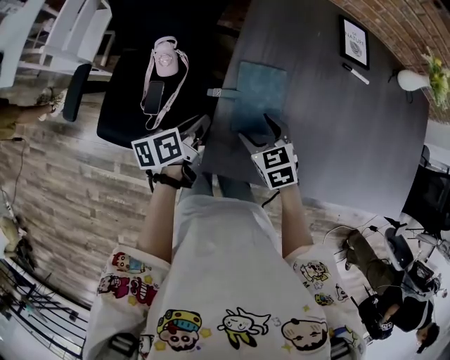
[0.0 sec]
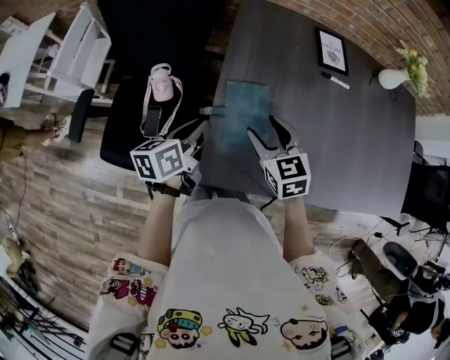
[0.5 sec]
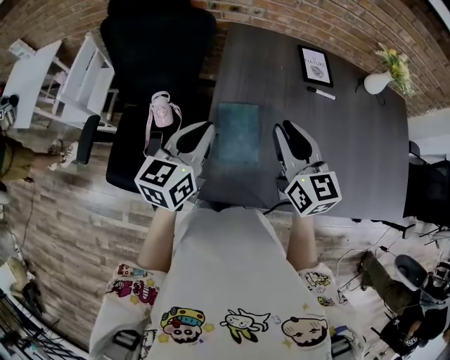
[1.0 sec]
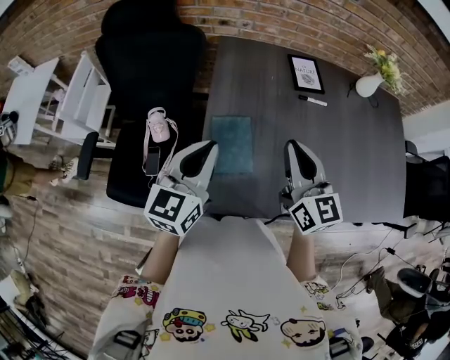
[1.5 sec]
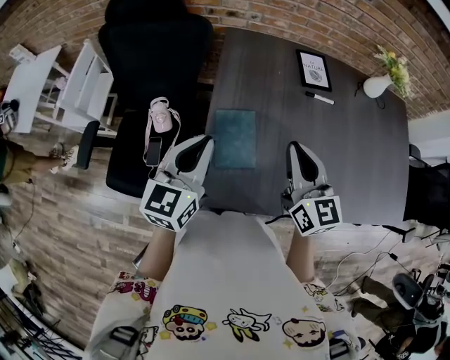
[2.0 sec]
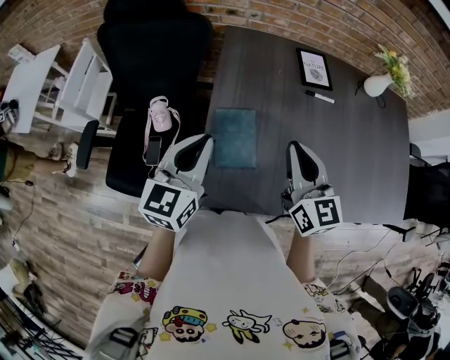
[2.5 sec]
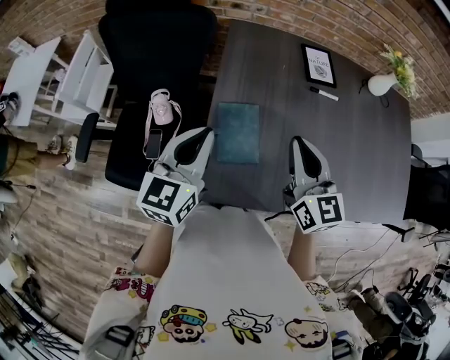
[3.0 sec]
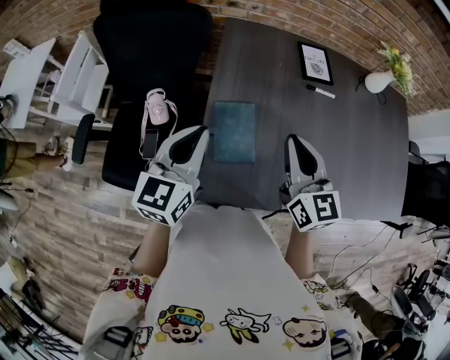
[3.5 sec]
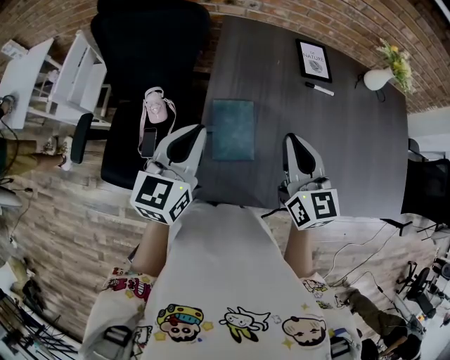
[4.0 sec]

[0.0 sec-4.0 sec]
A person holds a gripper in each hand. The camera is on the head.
0.0 sec to 2.0 sec: The left gripper is displaced upward by some 20 cm, and twists some 50 degrees clockwise, seen from behind. Meanwhile the right gripper is displaced upward and to the right by about 30 cm, tilts its fingers roughly 40 degrees upward, and closes its fingers.
2.0 sec to 4.0 sec: The grippers stay close to where they were, moving slightly.

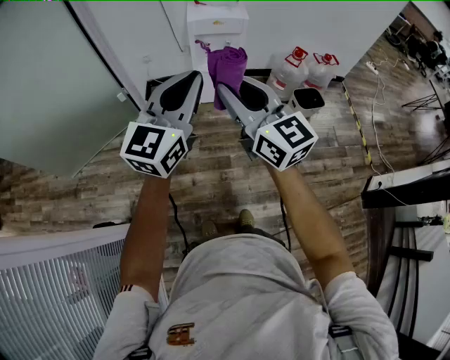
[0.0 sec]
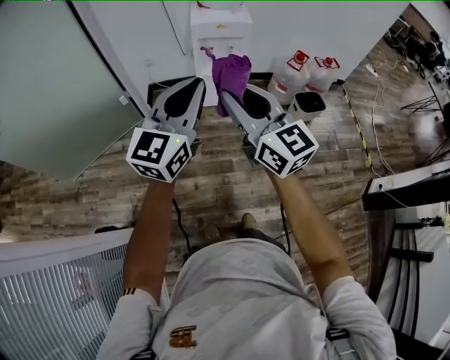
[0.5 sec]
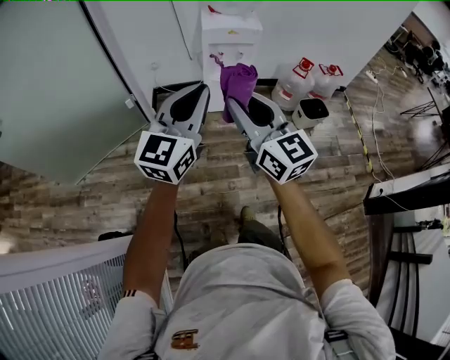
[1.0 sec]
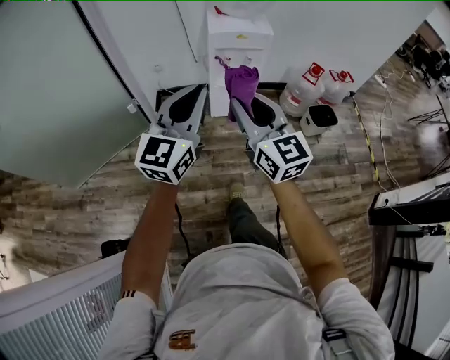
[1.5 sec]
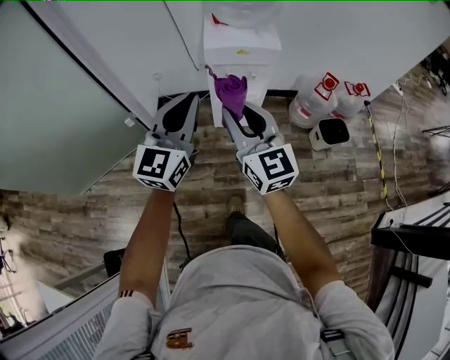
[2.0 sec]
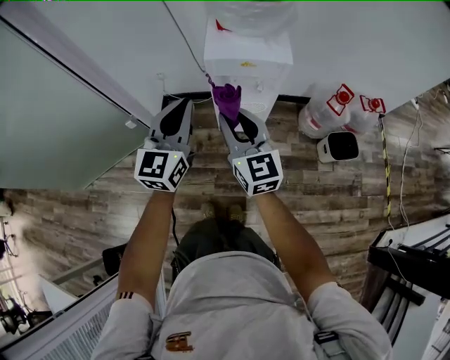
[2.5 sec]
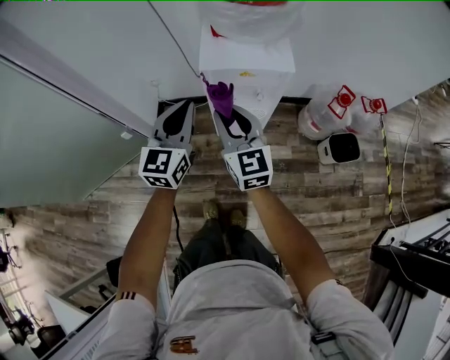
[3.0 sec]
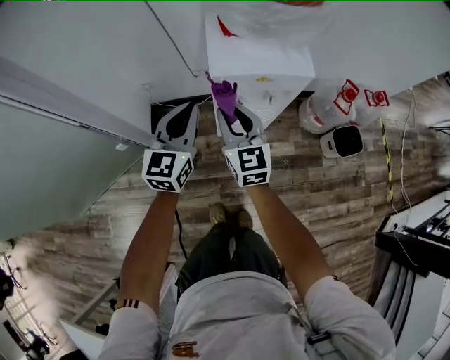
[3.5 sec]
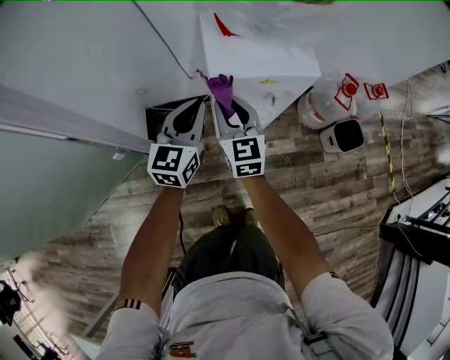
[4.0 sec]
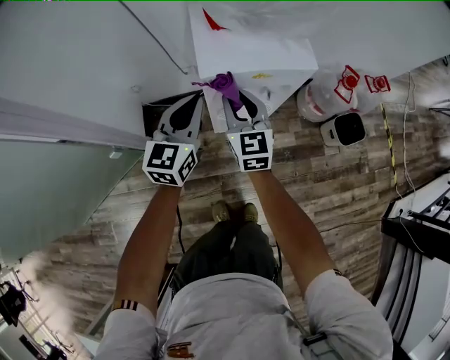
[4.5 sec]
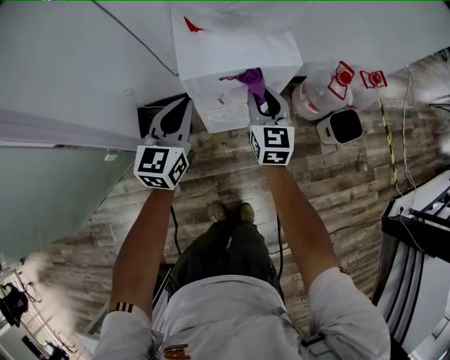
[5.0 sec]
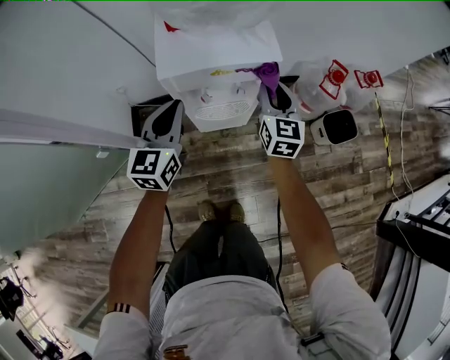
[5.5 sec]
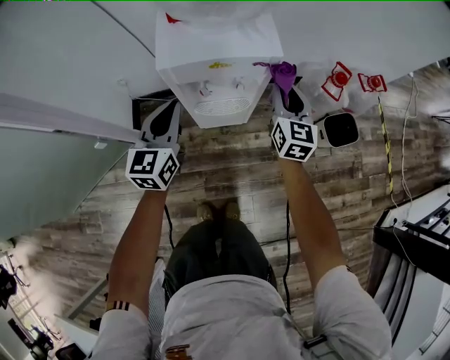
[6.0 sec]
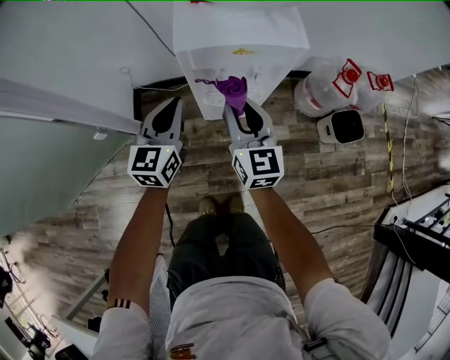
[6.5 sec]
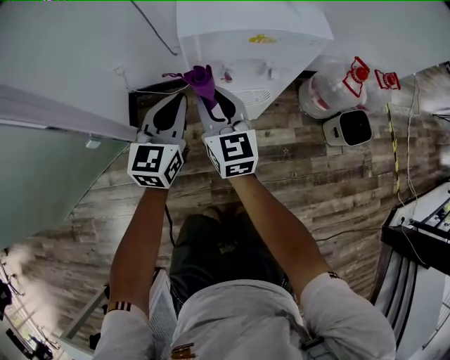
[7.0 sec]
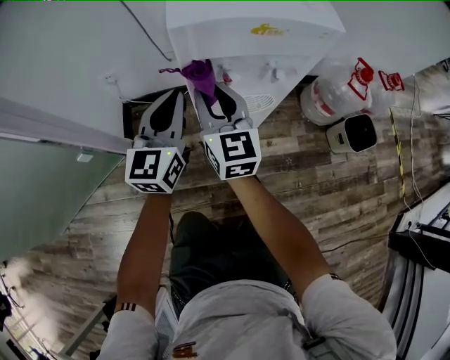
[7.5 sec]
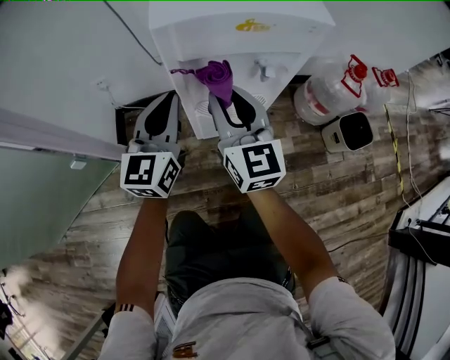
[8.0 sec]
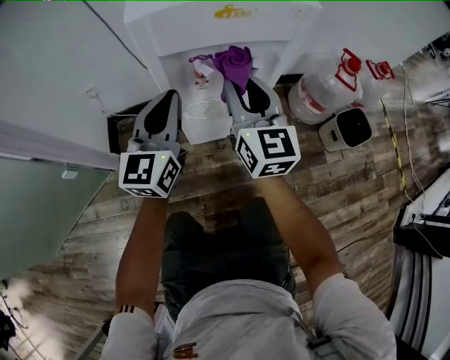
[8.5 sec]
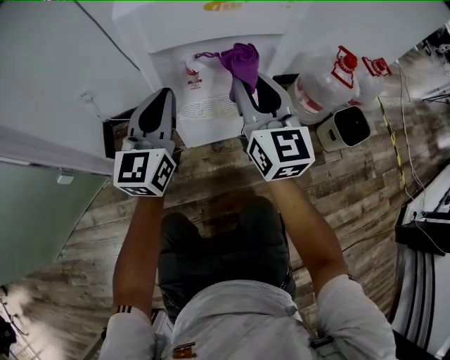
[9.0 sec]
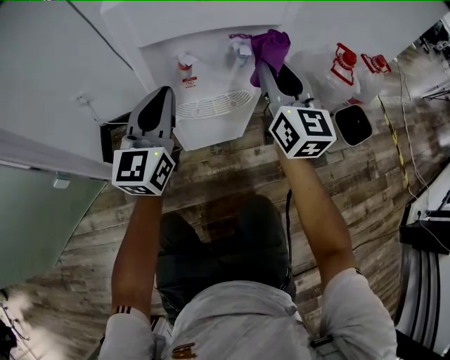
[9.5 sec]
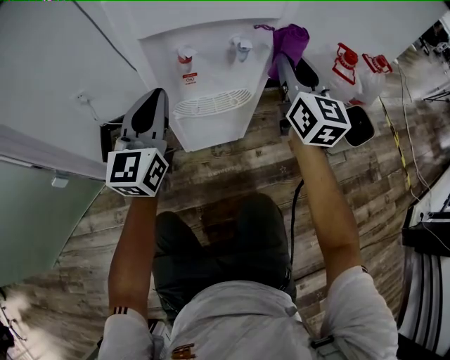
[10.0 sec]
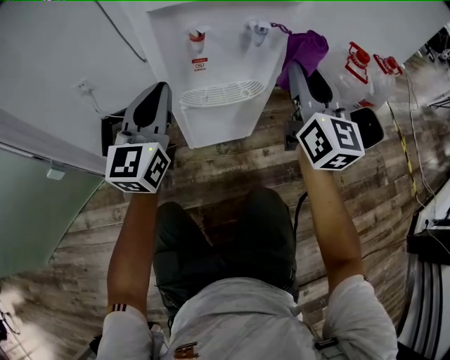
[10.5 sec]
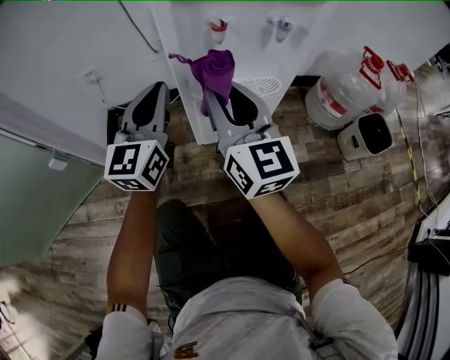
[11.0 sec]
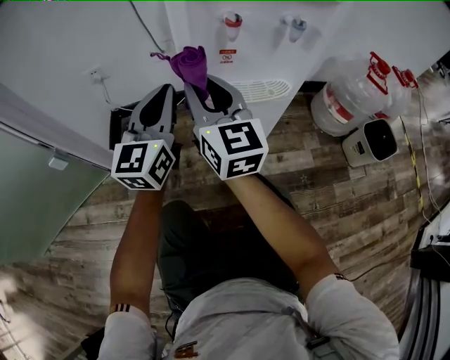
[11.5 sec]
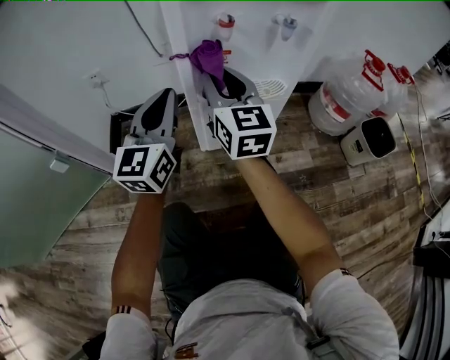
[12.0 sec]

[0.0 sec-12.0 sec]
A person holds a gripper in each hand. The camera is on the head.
0.0 sec to 2.0 sec: The two grippers go roughly 25 cm forward.
2.0 sec to 4.0 sec: Both grippers move forward and downward, about 35 cm. The right gripper changes its angle by some 20 degrees.
4.0 sec to 6.0 sec: The left gripper travels to the right by some 10 cm. The right gripper heads to the right, covering approximately 30 cm.
6.0 sec to 8.0 sec: The left gripper shifts some 10 cm downward, while the right gripper is displaced to the left by roughly 20 cm.
8.0 sec to 10.0 sec: The left gripper shifts approximately 5 cm downward, while the right gripper goes some 20 cm to the right.
10.0 sec to 12.0 sec: The right gripper shifts roughly 25 cm to the left and downward. The left gripper travels downward and to the left by roughly 10 cm.

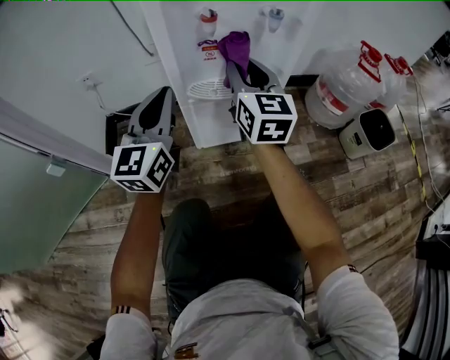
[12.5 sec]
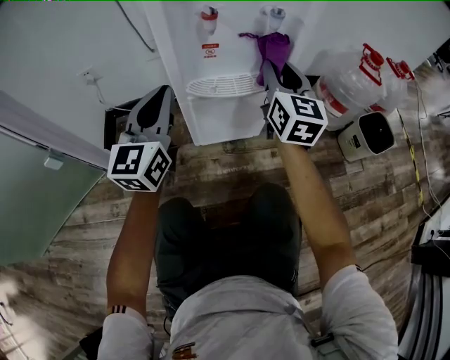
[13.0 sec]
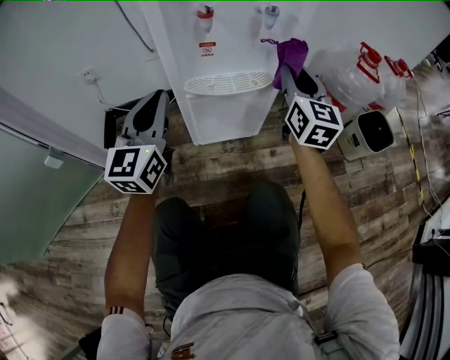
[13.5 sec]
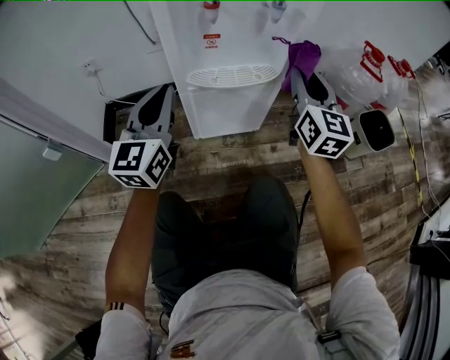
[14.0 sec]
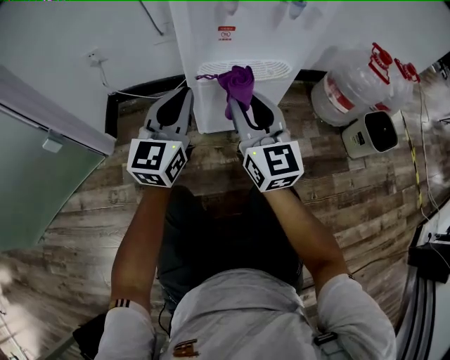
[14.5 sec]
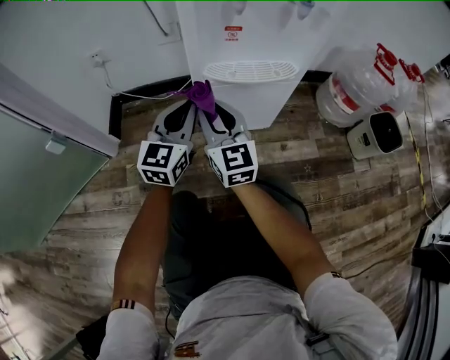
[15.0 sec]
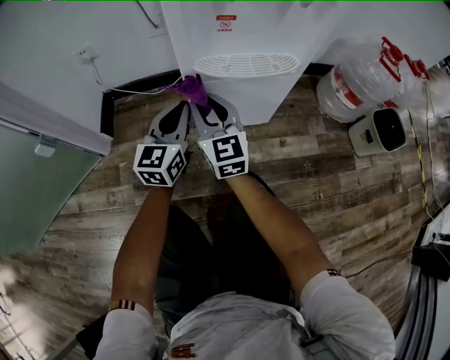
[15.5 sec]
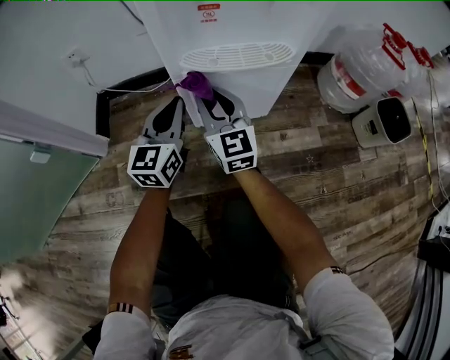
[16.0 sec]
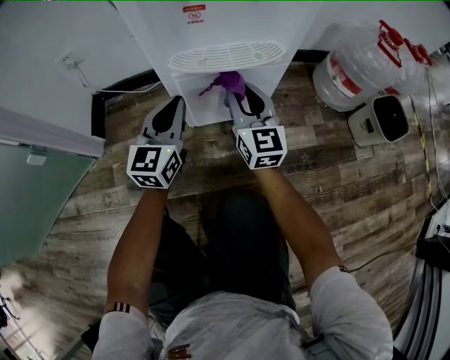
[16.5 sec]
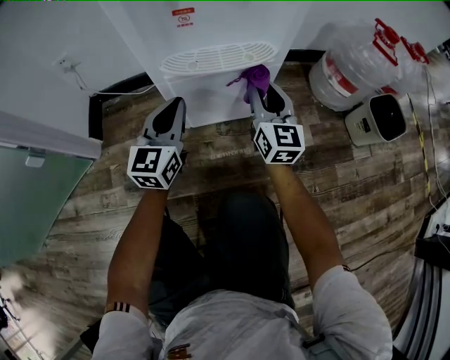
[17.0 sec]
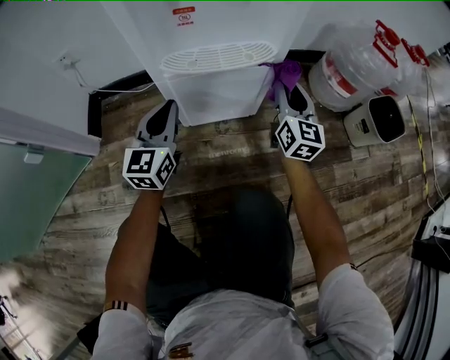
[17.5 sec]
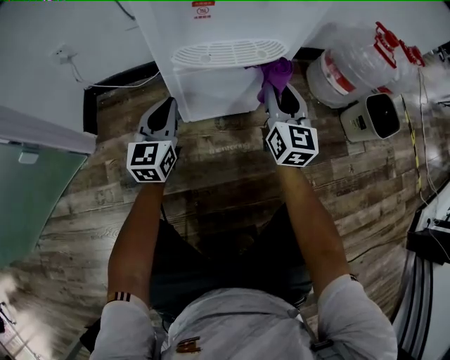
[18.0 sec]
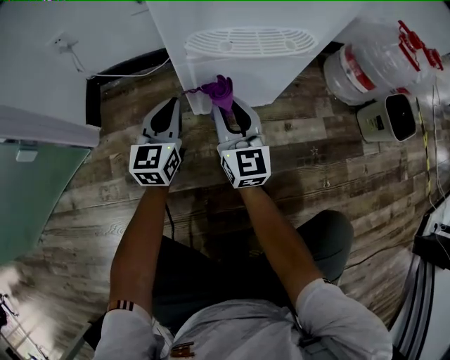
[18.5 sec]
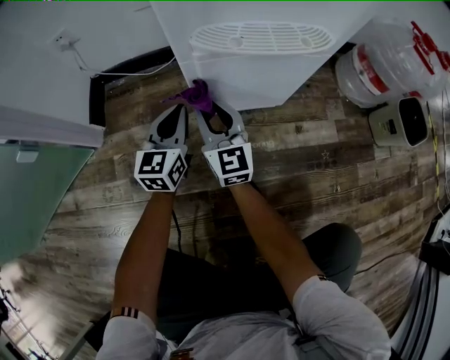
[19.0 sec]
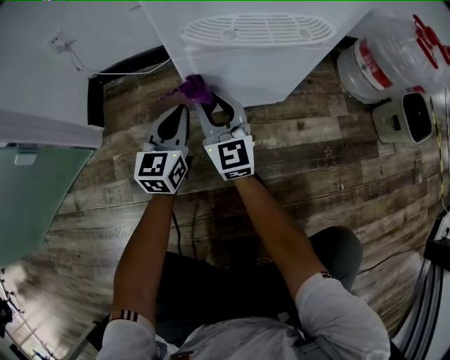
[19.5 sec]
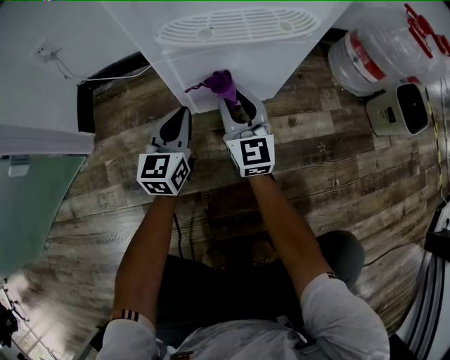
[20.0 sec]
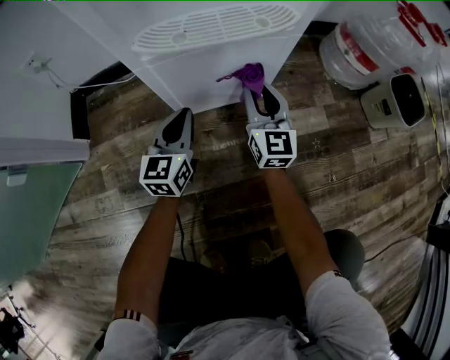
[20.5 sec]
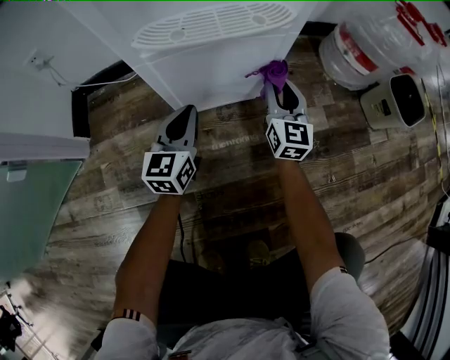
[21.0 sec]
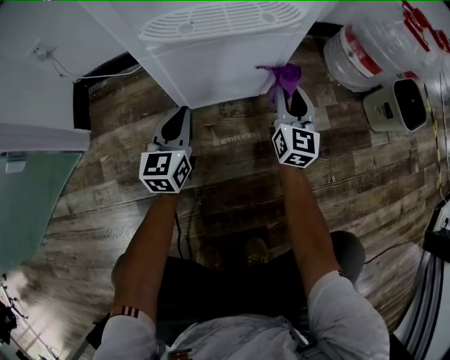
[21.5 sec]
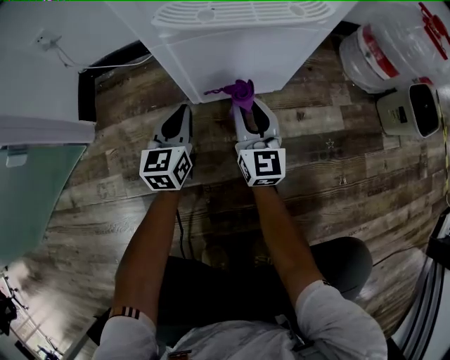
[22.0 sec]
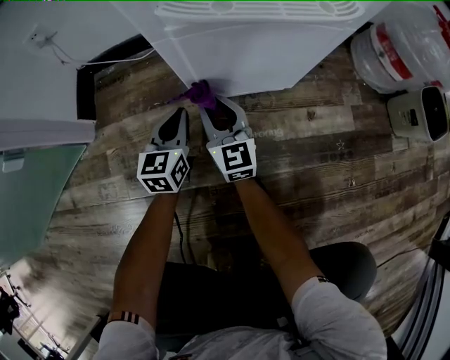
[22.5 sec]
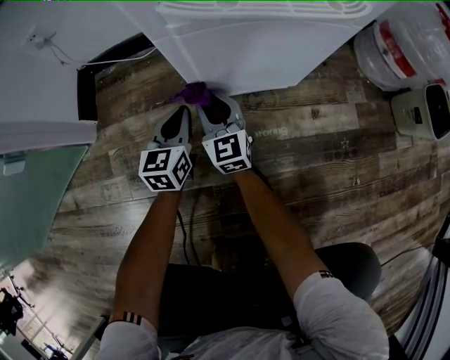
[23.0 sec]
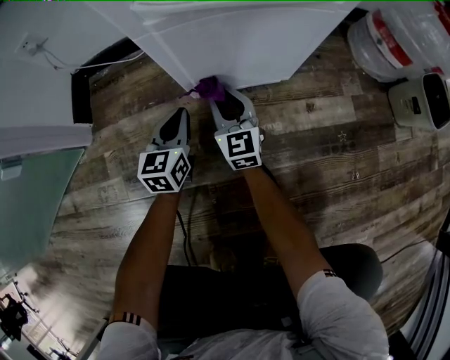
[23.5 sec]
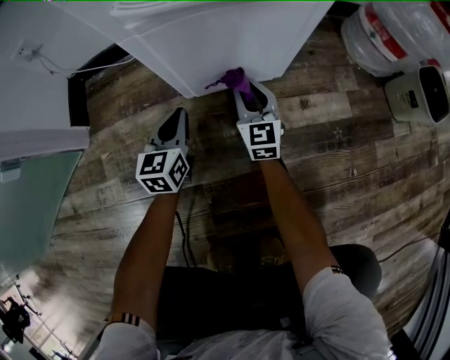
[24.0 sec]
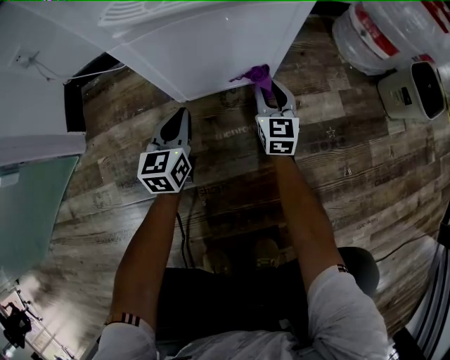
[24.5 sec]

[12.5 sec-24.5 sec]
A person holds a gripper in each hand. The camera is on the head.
12.5 sec to 14.5 sec: The right gripper moves backward, about 10 cm, and travels to the right and back again, roughly 15 cm each way; the left gripper is displaced downward by roughly 5 cm.
14.5 sec to 16.5 sec: The right gripper travels downward and forward by some 15 cm, and moves roughly 10 cm to the left and comes back. Meanwhile the left gripper is displaced downward by about 10 cm.
16.5 sec to 18.5 sec: The left gripper goes roughly 10 cm downward and to the left; the right gripper travels downward by roughly 5 cm, and moves some 15 cm to the right and comes back.
18.5 sec to 20.5 sec: Both grippers travel together to the right and downward, roughly 10 cm.
20.5 sec to 22.5 sec: The left gripper goes approximately 10 cm to the left and downward. Meanwhile the right gripper travels to the left and downward by approximately 20 cm.
22.5 sec to 24.5 sec: The right gripper goes some 20 cm to the right, and swivels some 20 degrees. Meanwhile the left gripper is displaced to the right by about 5 cm.
